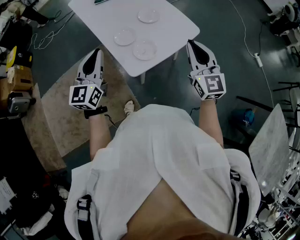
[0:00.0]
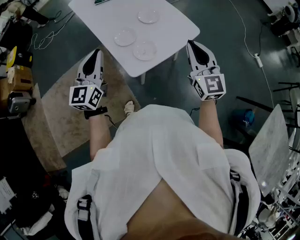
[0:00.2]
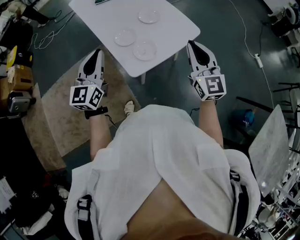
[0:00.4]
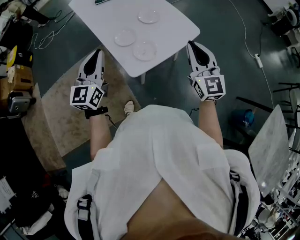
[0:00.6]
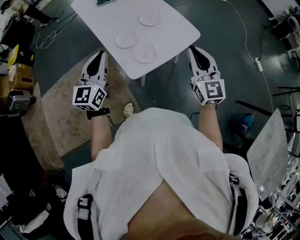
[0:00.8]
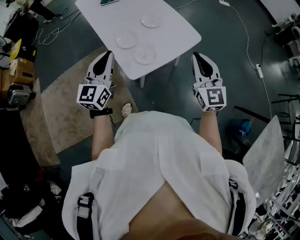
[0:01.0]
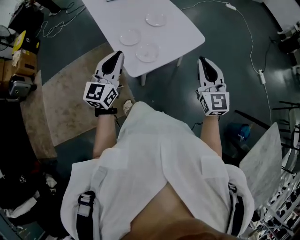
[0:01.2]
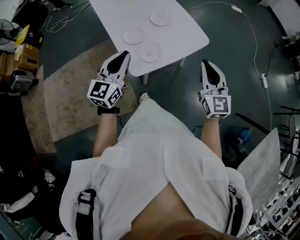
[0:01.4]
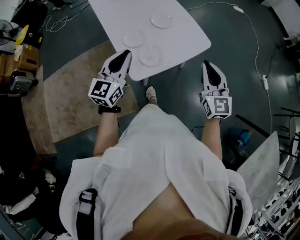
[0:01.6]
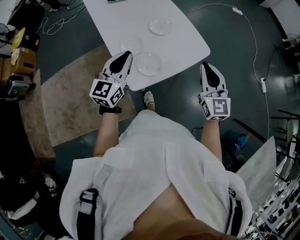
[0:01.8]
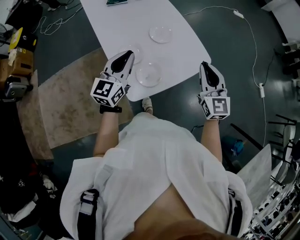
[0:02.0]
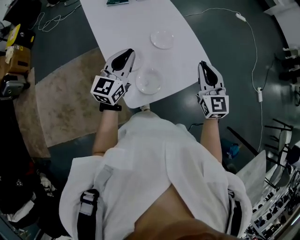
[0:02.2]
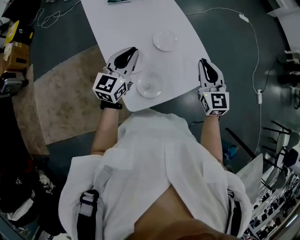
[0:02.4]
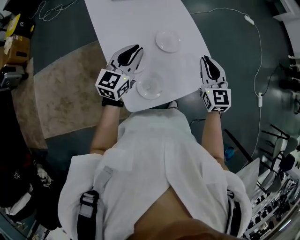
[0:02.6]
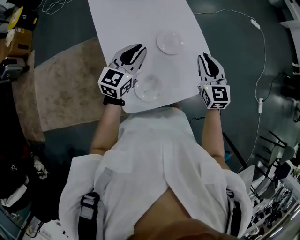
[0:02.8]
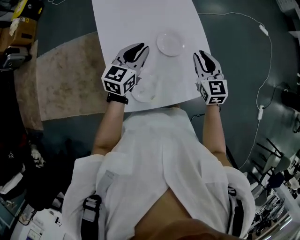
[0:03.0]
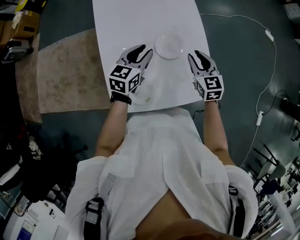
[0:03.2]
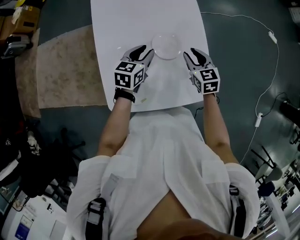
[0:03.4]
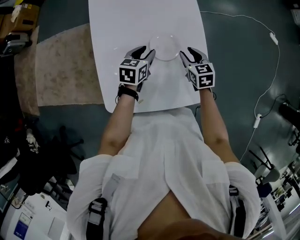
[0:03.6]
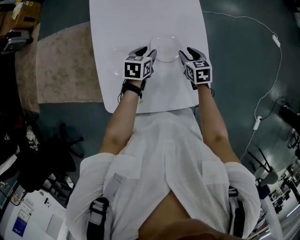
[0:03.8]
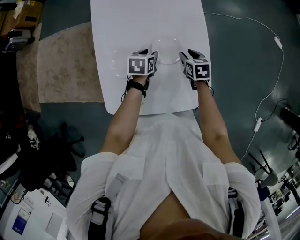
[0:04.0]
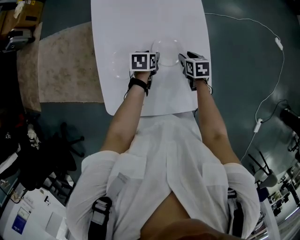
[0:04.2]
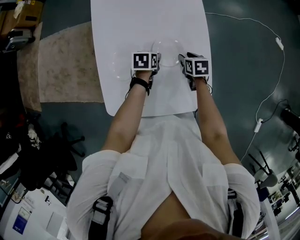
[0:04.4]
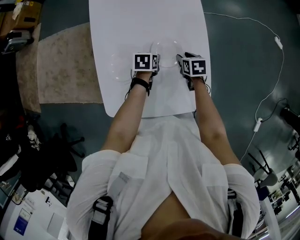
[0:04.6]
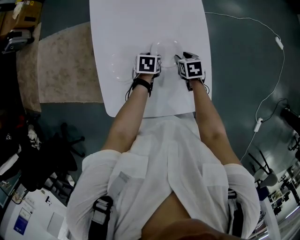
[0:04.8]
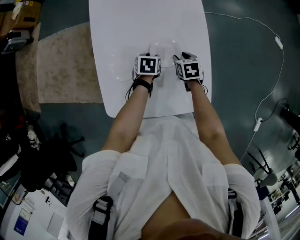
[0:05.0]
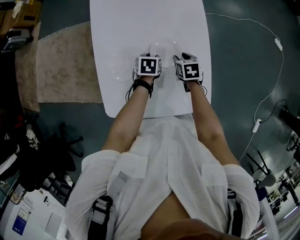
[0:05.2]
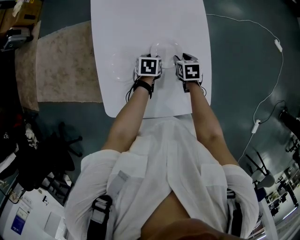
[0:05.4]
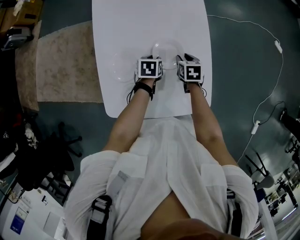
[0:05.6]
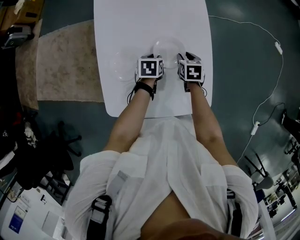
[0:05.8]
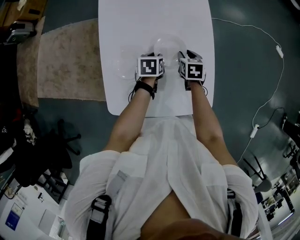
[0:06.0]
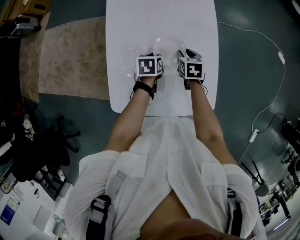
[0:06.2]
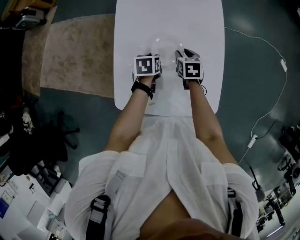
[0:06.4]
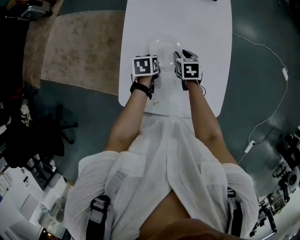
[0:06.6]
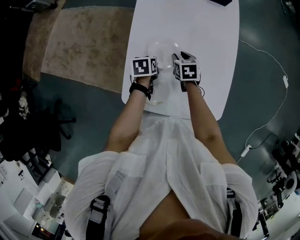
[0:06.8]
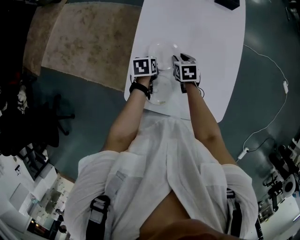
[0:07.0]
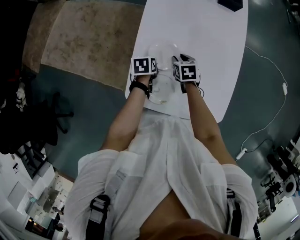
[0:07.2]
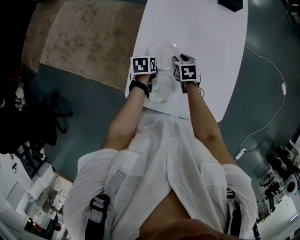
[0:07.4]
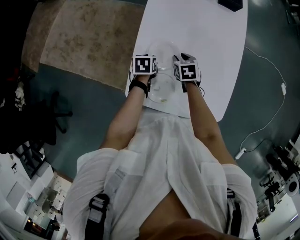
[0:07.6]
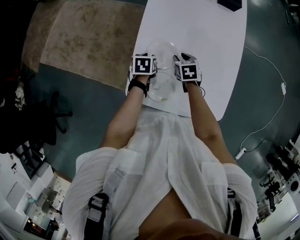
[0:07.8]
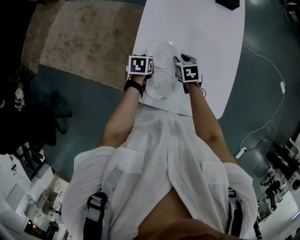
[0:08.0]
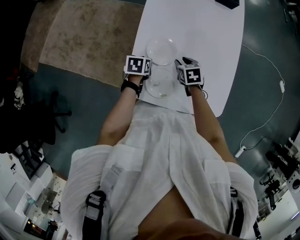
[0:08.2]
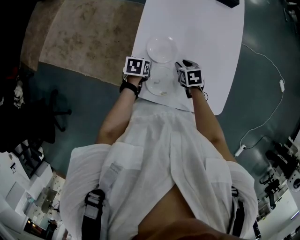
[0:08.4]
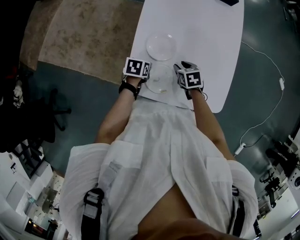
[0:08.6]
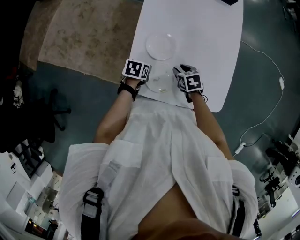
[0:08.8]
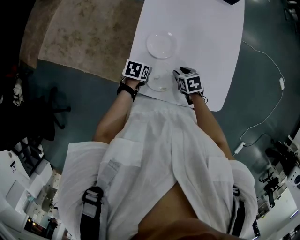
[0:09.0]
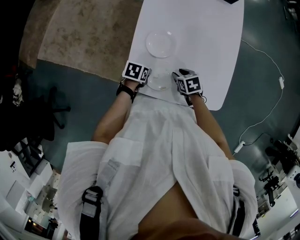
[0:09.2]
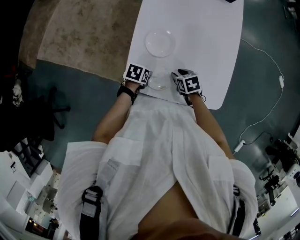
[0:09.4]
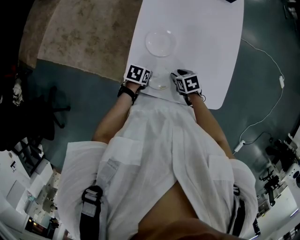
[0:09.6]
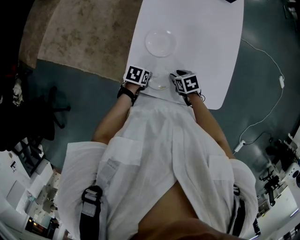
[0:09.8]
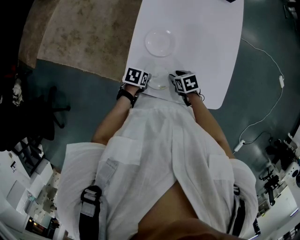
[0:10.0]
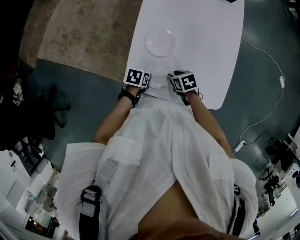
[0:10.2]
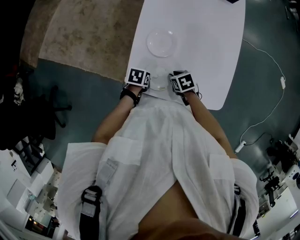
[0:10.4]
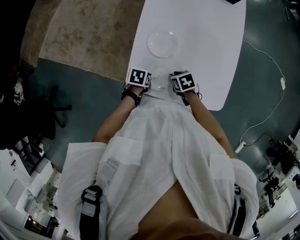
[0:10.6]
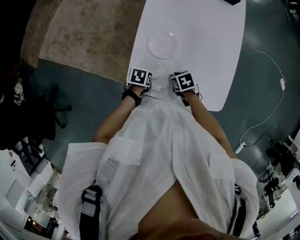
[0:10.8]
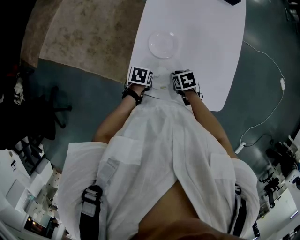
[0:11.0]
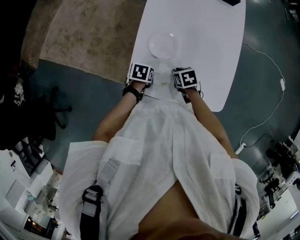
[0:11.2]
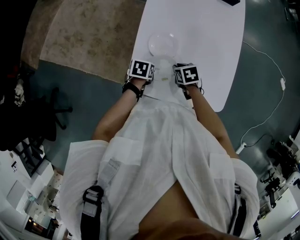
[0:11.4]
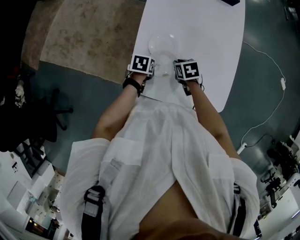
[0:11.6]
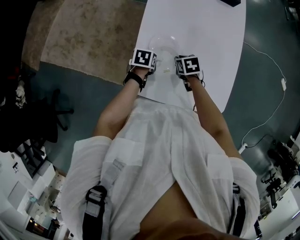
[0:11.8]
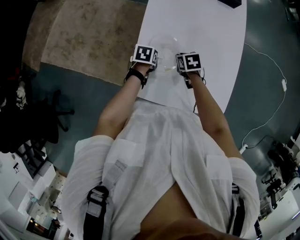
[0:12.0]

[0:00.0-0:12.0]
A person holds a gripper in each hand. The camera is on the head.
0:00.0 to 0:01.6: The left gripper heads to the right, covering approximately 10 cm; the right gripper travels to the right by roughly 5 cm.
0:01.6 to 0:03.0: The right gripper shifts approximately 35 cm forward, and rotates some 30 degrees; the left gripper shifts some 30 cm forward and downward, and changes its angle by about 20 degrees.
0:03.0 to 0:04.4: The right gripper shifts about 20 cm downward and forward, points its fingers approximately 40 degrees further downward, and opens up, while the left gripper moves downward, roughly 20 cm, points its fingers approximately 40 degrees further downward, and opens up.
0:04.4 to 0:06.0: The left gripper closes.
0:06.0 to 0:07.6: Both grippers travel together to the left, roughly 20 cm. The right gripper changes its angle by some 20 degrees.
0:07.6 to 0:09.0: Both grippers travel together backward, about 10 cm.
0:09.0 to 0:10.4: The grippers make only small movements.
0:10.4 to 0:12.0: The left gripper changes place by approximately 15 cm. The right gripper changes place by about 15 cm.

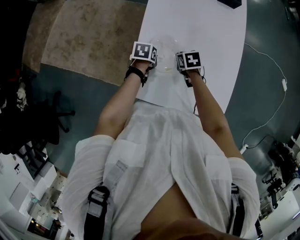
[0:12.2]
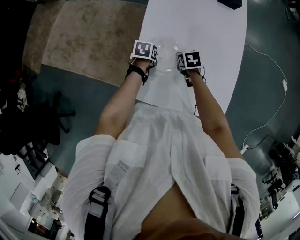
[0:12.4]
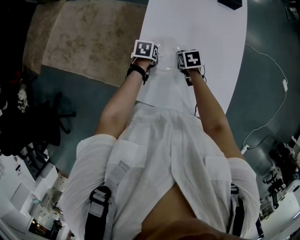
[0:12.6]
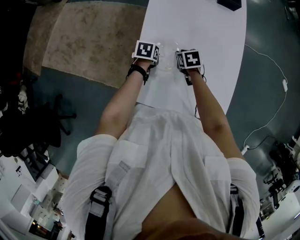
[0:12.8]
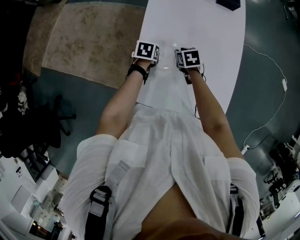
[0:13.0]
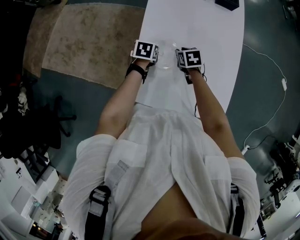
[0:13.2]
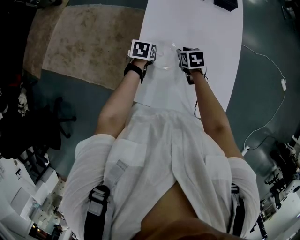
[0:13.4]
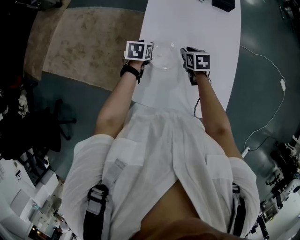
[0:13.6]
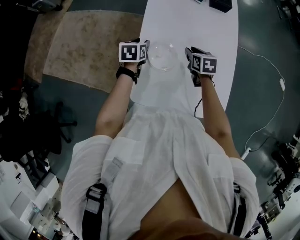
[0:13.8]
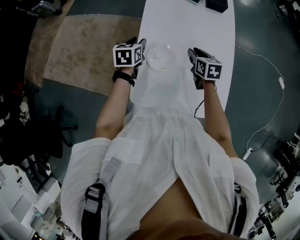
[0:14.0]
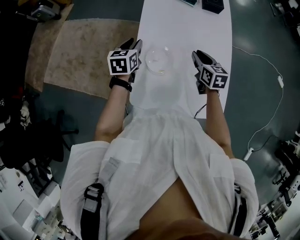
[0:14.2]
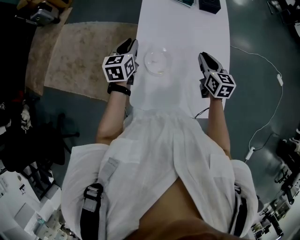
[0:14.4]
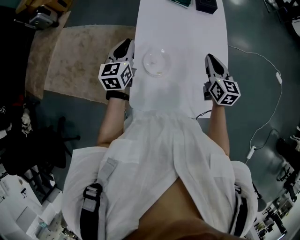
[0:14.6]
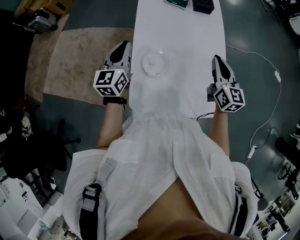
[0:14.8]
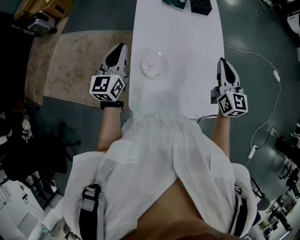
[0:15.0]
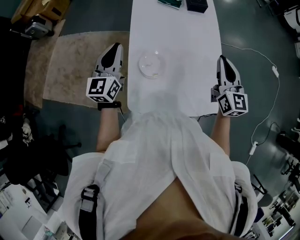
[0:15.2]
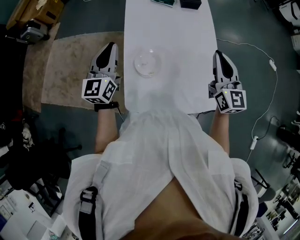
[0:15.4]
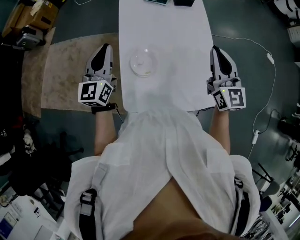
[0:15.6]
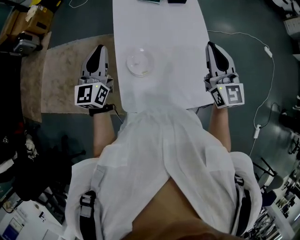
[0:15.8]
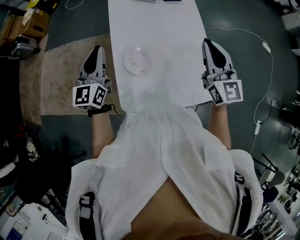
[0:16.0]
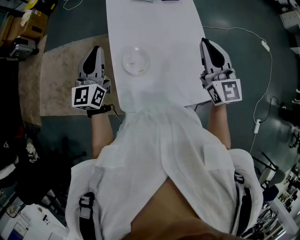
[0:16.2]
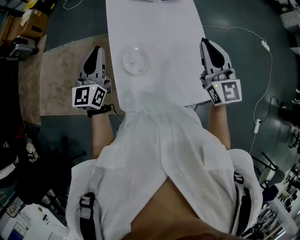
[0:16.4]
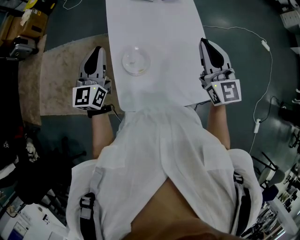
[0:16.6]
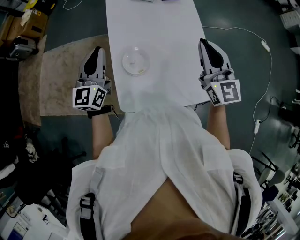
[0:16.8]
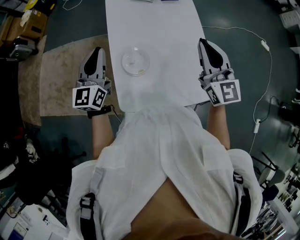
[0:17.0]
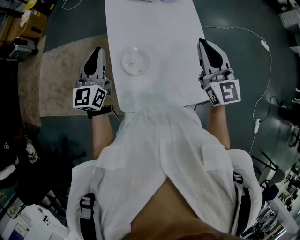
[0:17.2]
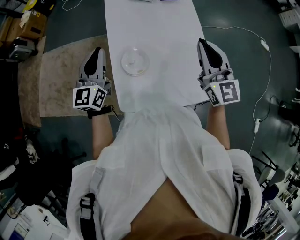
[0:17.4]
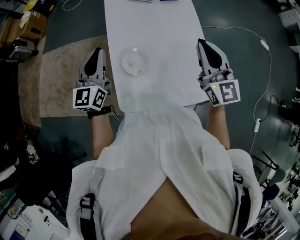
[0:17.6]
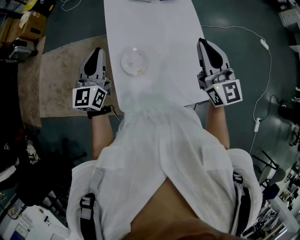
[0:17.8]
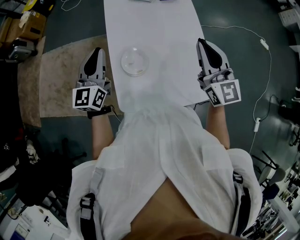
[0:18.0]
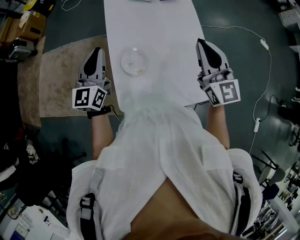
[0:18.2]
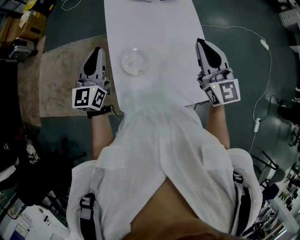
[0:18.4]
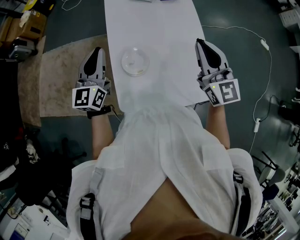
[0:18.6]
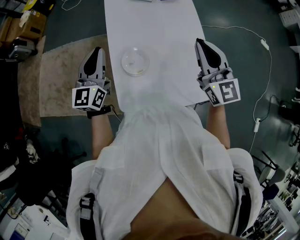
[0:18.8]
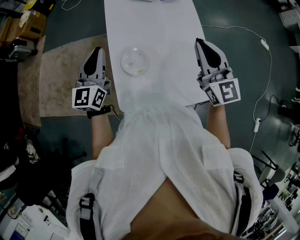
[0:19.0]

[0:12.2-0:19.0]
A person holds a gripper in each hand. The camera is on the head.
0:12.2 to 0:13.6: The right gripper shifts some 5 cm upward. Meanwhile the left gripper goes roughly 10 cm forward and upward, changes its angle by roughly 20 degrees, and opens.
0:13.6 to 0:15.0: The left gripper moves upward, roughly 25 cm, points its fingers some 50 degrees further upward, and closes up, while the right gripper moves upward and to the right, some 30 cm, tips its fingers upward by about 50 degrees, and closes its fingers.
0:15.0 to 0:16.2: The right gripper travels upward by roughly 5 cm.
0:16.2 to 0:17.6: The two grippers keep their place.
0:17.6 to 0:19.0: The grippers stay close to where they were, moving slightly.

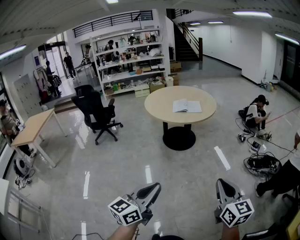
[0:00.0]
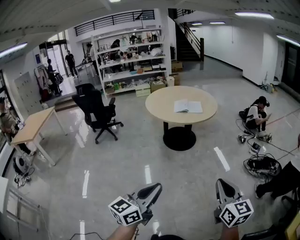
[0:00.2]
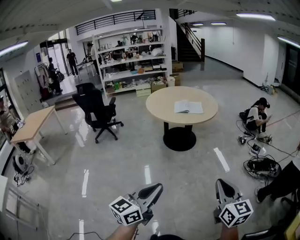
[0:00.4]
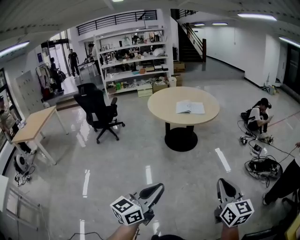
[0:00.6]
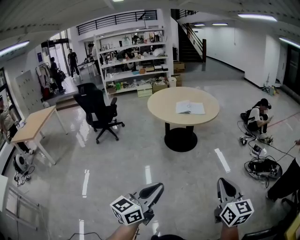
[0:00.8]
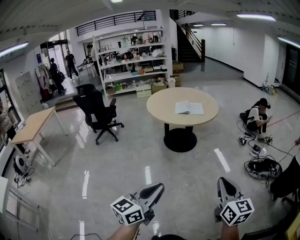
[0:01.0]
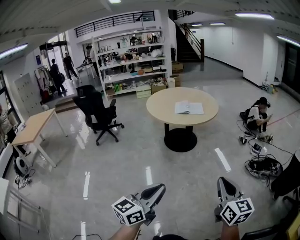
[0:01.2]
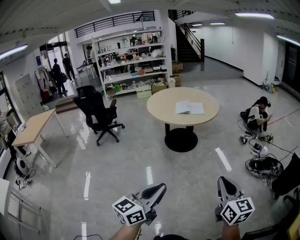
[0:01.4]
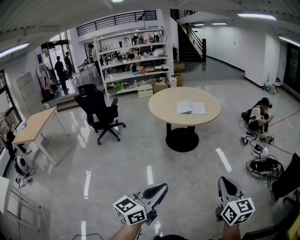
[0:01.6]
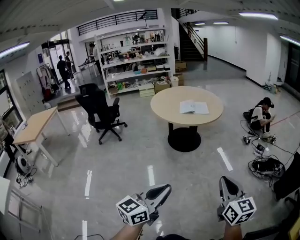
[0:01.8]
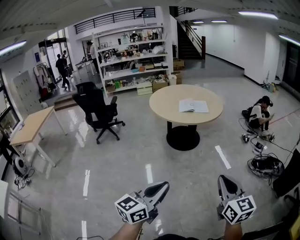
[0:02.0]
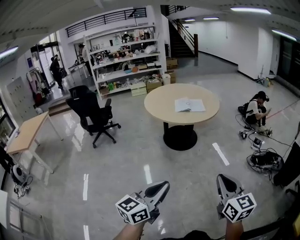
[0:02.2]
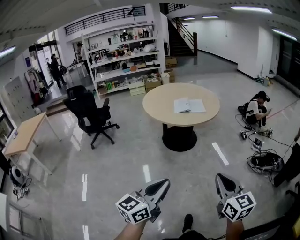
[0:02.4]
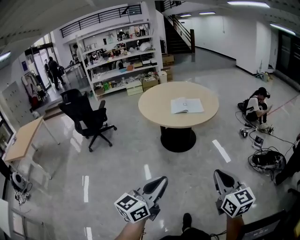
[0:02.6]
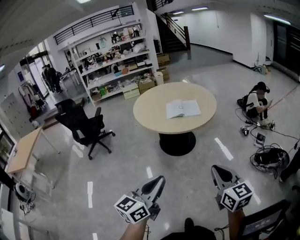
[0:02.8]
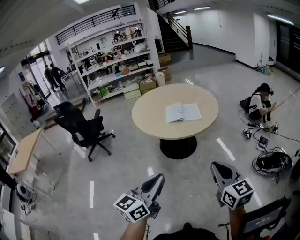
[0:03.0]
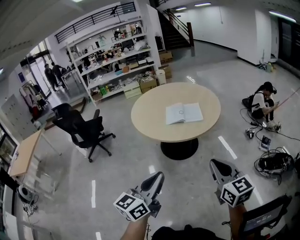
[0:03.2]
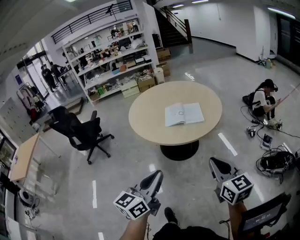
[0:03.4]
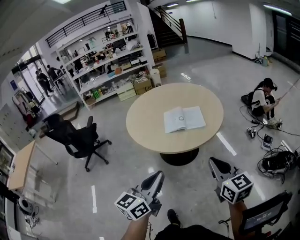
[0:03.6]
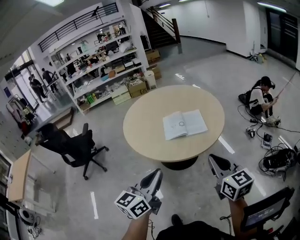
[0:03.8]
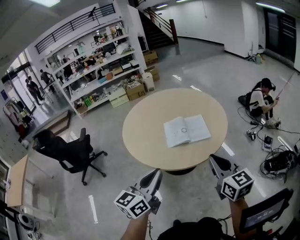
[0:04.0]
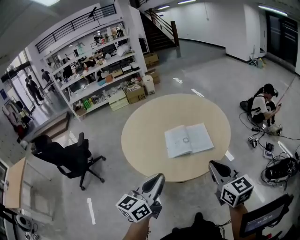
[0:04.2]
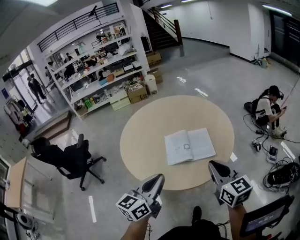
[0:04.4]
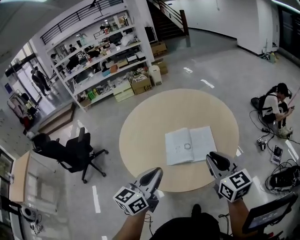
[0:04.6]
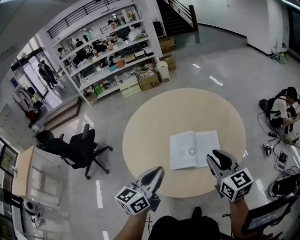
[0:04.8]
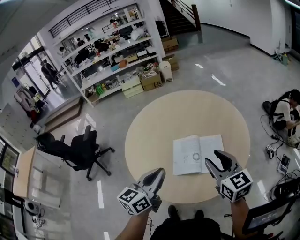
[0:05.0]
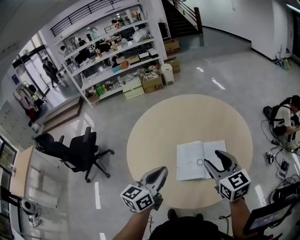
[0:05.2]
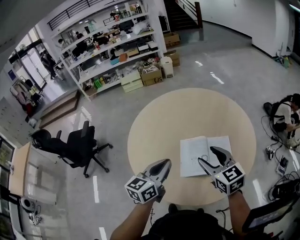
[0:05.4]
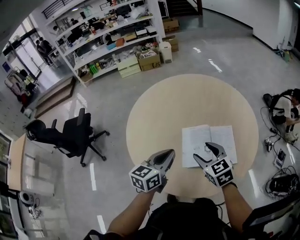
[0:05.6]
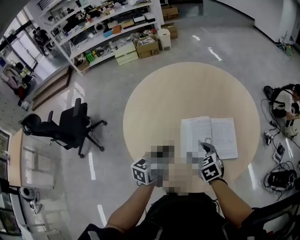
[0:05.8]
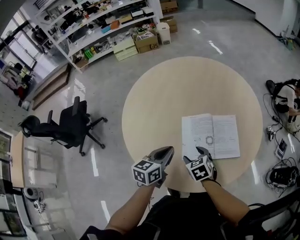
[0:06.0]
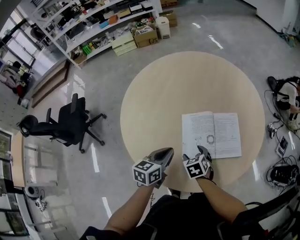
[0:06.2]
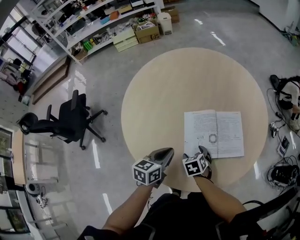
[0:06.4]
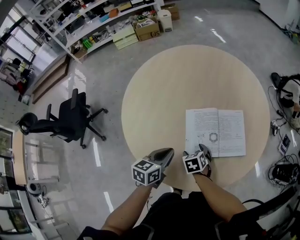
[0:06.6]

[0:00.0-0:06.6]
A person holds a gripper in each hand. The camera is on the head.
0:00.0 to 0:01.6: There are only small adjustments of the grippers.
0:01.6 to 0:03.2: Both grippers travel together forward, about 40 cm.
0:03.2 to 0:05.0: The pair of grippers is taken forward, approximately 60 cm. The right gripper opens up.
0:05.0 to 0:06.6: The right gripper shifts approximately 40 cm downward and to the left, points its fingers approximately 50 degrees further downward, and opens up. The left gripper goes approximately 20 cm downward, and swivels some 30 degrees.
